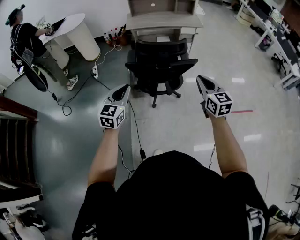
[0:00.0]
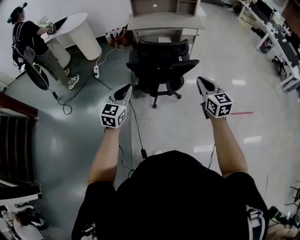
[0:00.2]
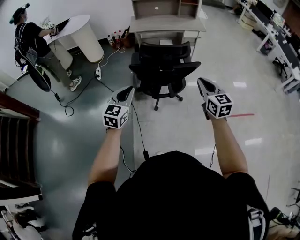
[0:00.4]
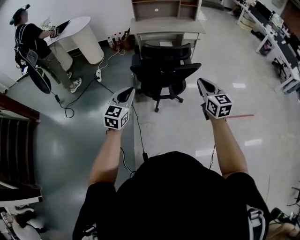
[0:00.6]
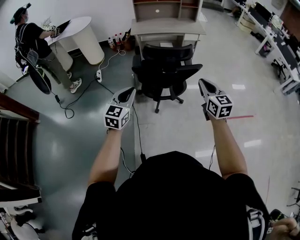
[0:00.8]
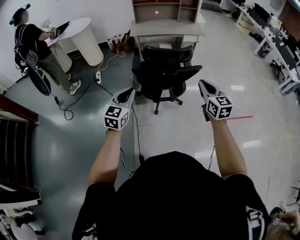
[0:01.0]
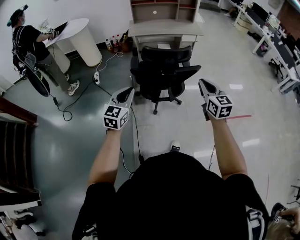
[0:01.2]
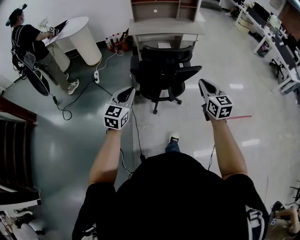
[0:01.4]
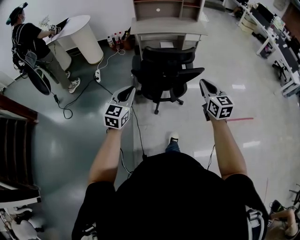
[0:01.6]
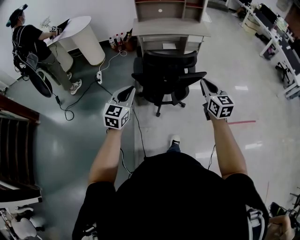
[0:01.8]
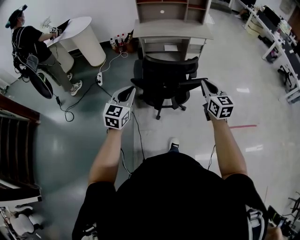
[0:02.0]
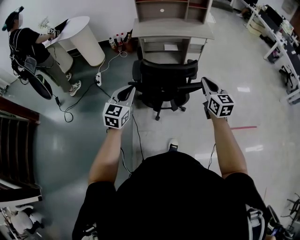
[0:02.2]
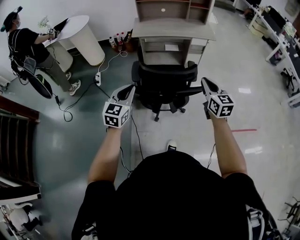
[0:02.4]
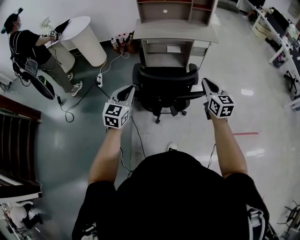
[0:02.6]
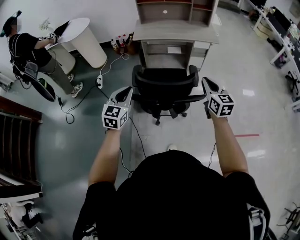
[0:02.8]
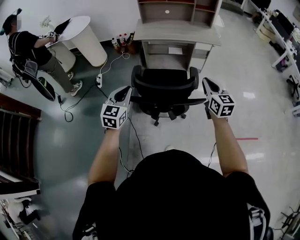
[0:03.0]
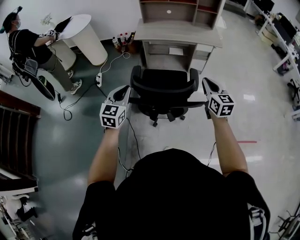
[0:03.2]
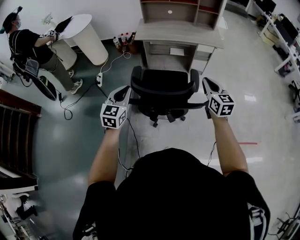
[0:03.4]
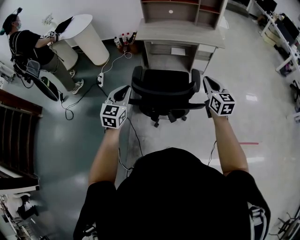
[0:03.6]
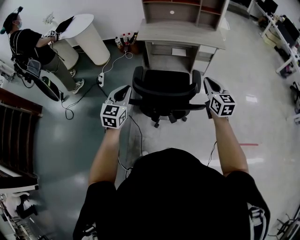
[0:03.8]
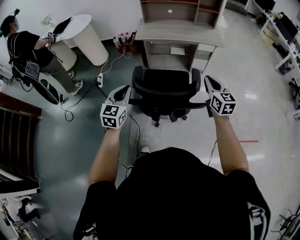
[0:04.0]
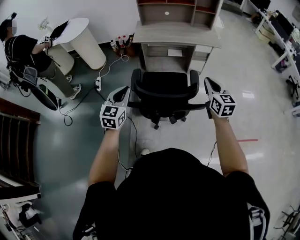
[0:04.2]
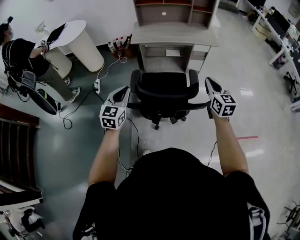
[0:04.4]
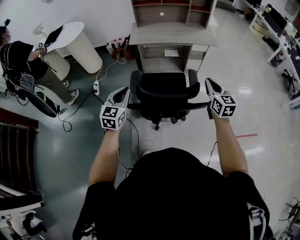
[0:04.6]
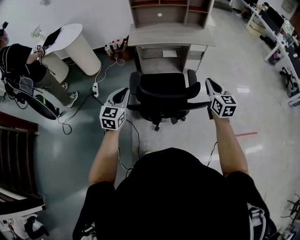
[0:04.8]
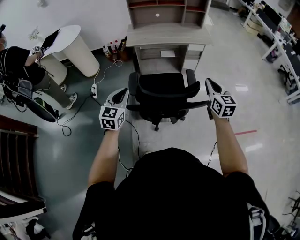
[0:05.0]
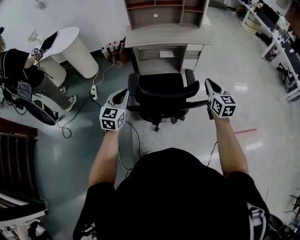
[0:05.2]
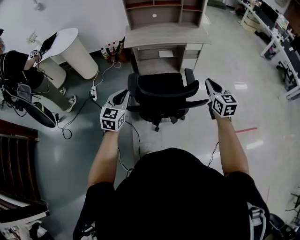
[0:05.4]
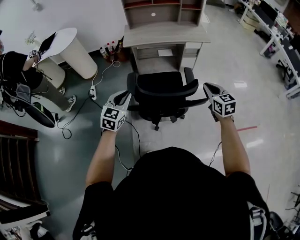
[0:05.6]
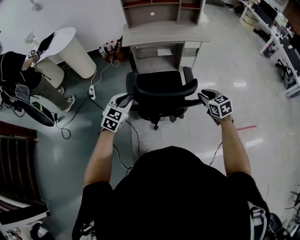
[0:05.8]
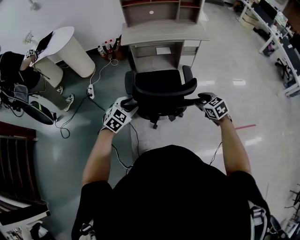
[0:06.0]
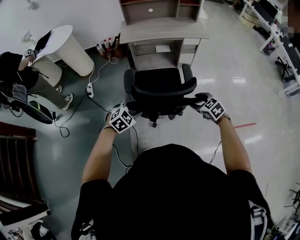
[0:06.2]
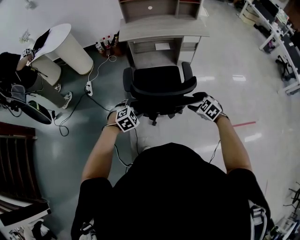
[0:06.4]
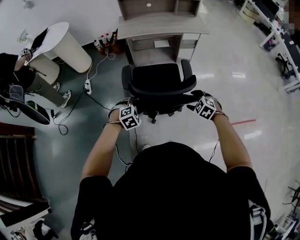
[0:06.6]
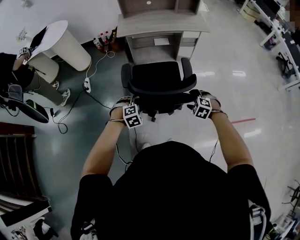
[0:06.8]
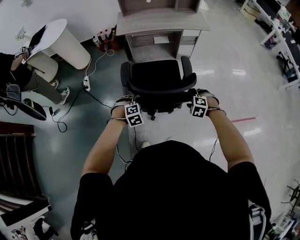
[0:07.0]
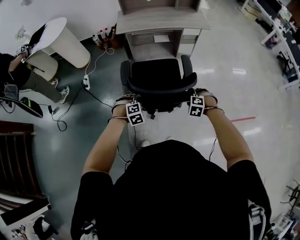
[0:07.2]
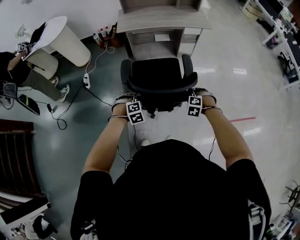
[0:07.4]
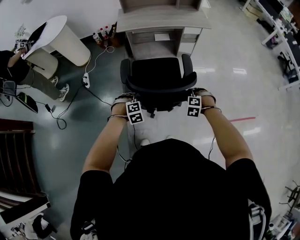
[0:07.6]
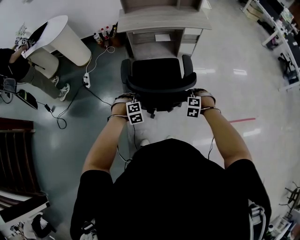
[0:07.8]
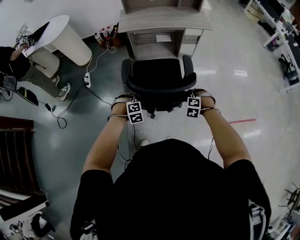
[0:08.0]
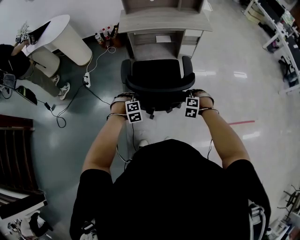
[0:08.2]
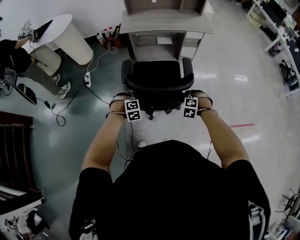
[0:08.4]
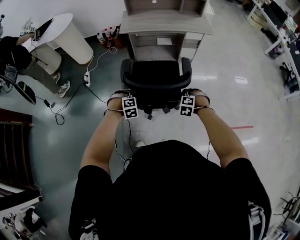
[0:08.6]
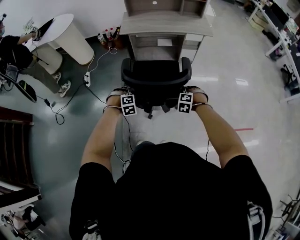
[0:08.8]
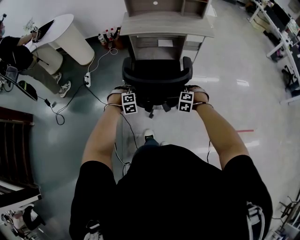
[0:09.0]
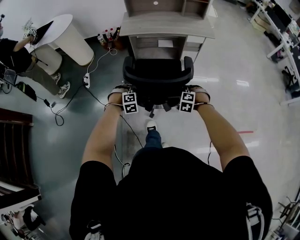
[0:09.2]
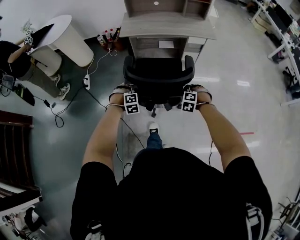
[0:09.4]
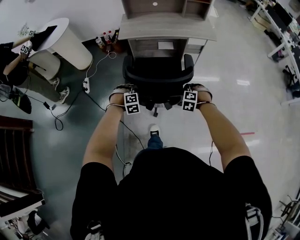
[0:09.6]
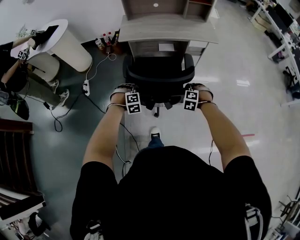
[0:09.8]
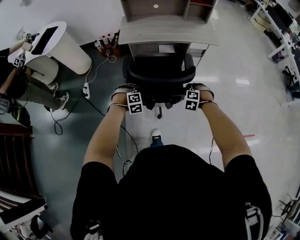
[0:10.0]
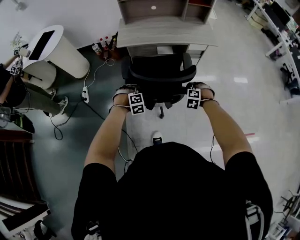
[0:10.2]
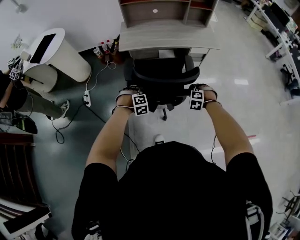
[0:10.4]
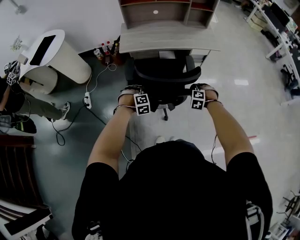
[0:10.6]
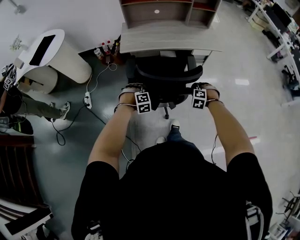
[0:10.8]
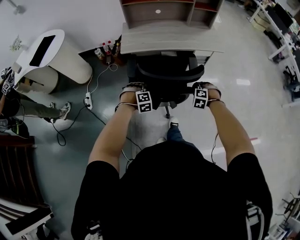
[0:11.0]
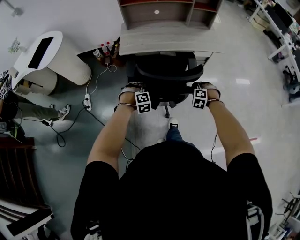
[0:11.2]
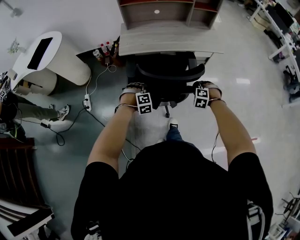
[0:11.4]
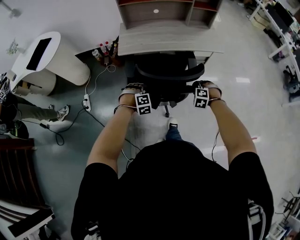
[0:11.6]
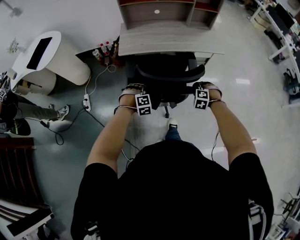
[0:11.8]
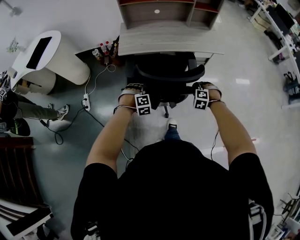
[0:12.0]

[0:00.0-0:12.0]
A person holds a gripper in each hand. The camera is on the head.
0:00.0 to 0:01.6: There are only small adjustments of the grippers.
0:01.6 to 0:03.0: Both grippers move forward, approximately 25 cm.
0:03.0 to 0:04.4: The left gripper moves forward, approximately 5 cm.
0:04.4 to 0:06.0: The right gripper heads downward and backward, covering about 15 cm, tilts its fingers approximately 30 degrees downward, and opens up. The left gripper heads downward, covering some 10 cm, rotates approximately 40 degrees, and opens its fingers.
0:06.0 to 0:07.6: Both grippers move downward, approximately 15 cm. The right gripper twists roughly 50 degrees counterclockwise, seen from behind, and opens and closes again; the left gripper swivels approximately 40 degrees, and opens and closes again.
0:07.6 to 0:09.0: The two grippers go approximately 5 cm forward.
0:09.0 to 0:10.4: The grippers both shift forward by about 20 cm.
0:10.4 to 0:12.0: The two grippers go approximately 10 cm forward.

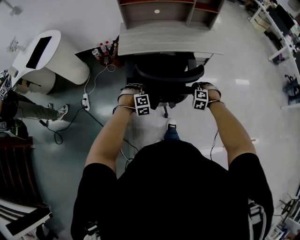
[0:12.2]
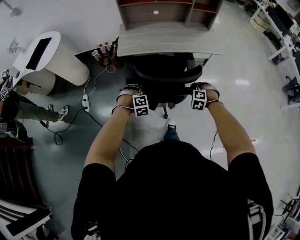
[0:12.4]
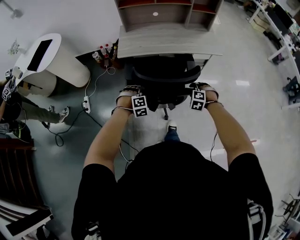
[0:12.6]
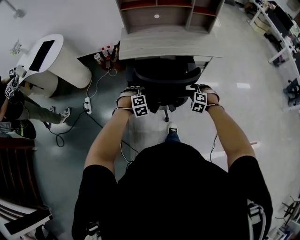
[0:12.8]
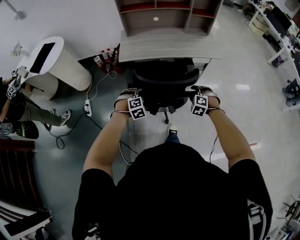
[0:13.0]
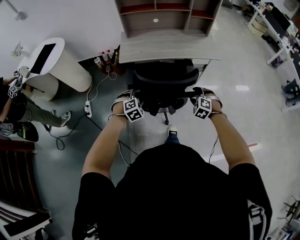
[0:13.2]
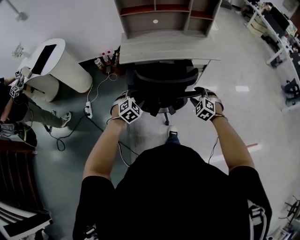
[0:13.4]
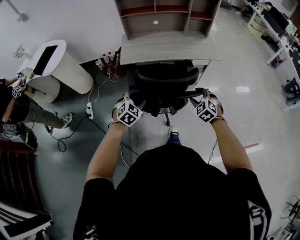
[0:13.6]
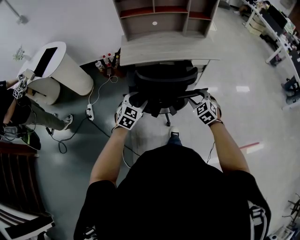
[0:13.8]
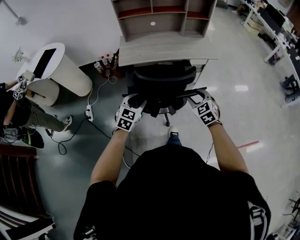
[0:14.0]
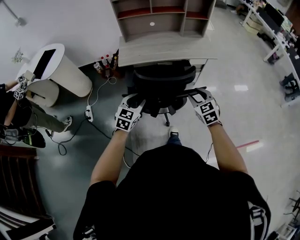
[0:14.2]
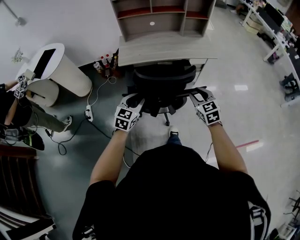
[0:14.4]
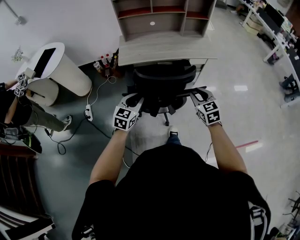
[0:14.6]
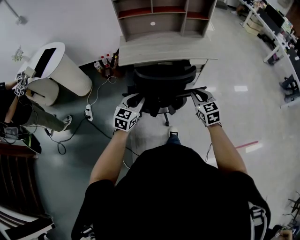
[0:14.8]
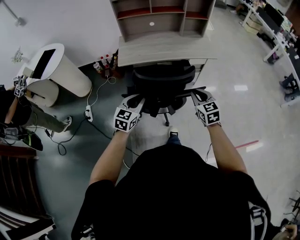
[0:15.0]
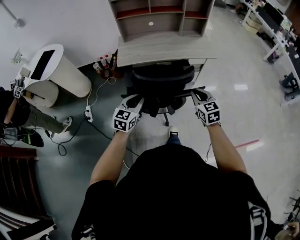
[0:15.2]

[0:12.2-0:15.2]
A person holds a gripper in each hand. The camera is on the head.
0:12.2 to 0:13.8: Both grippers travel together upward and backward, about 15 cm. The left gripper twists about 50 degrees counterclockwise, seen from behind, and opens. Meanwhile the right gripper rotates approximately 50 degrees, and opens its fingers.
0:13.8 to 0:15.2: The right gripper goes some 5 cm upward, turns by some 30 degrees, and closes its fingers; the left gripper rotates some 20 degrees, and closes up.

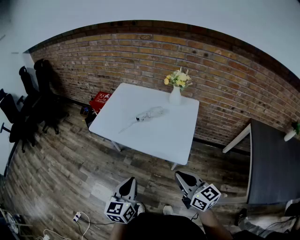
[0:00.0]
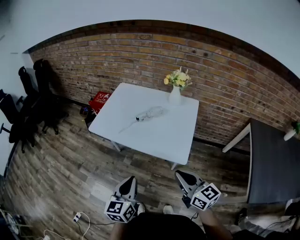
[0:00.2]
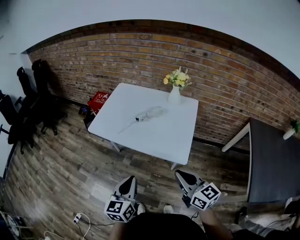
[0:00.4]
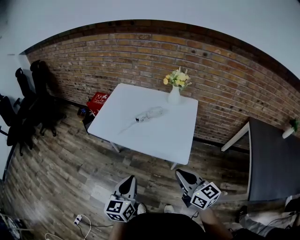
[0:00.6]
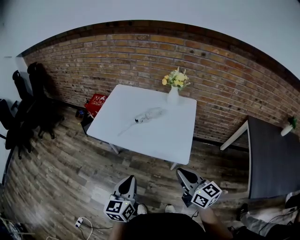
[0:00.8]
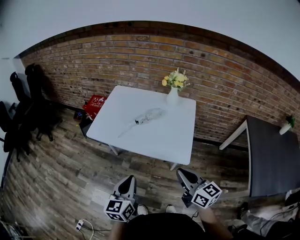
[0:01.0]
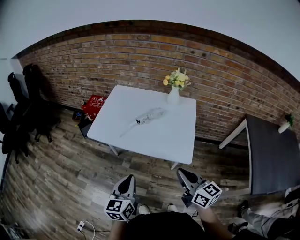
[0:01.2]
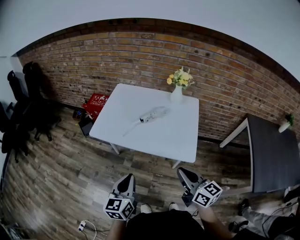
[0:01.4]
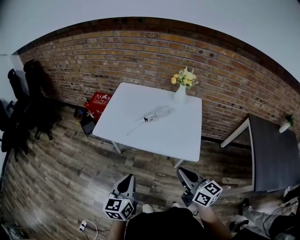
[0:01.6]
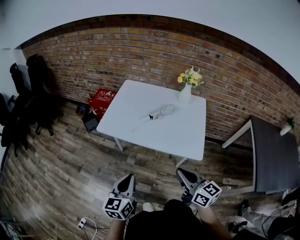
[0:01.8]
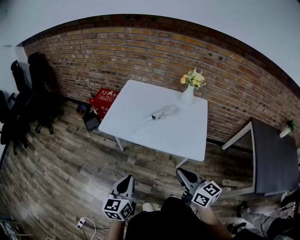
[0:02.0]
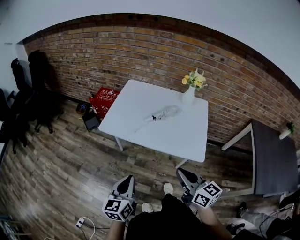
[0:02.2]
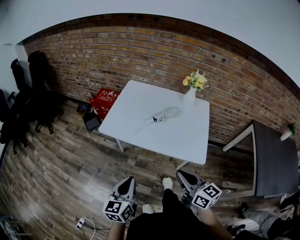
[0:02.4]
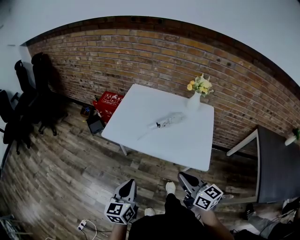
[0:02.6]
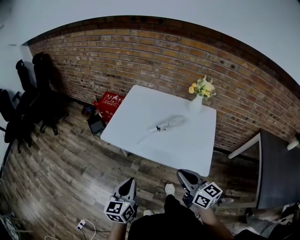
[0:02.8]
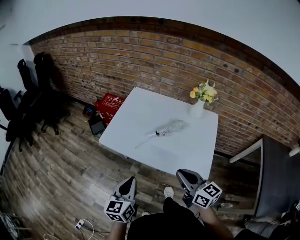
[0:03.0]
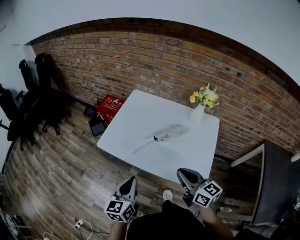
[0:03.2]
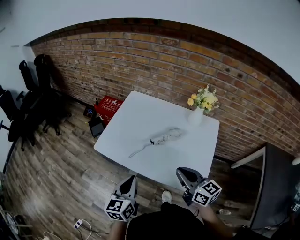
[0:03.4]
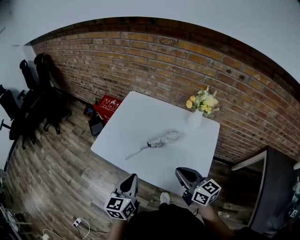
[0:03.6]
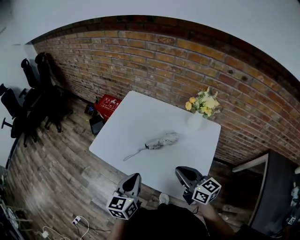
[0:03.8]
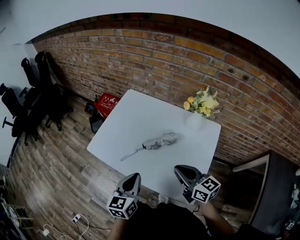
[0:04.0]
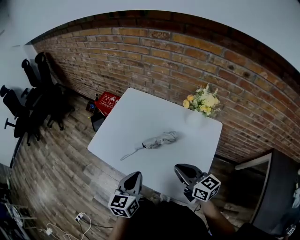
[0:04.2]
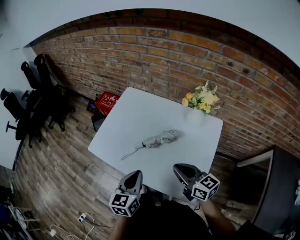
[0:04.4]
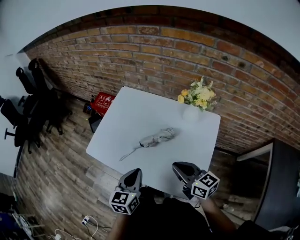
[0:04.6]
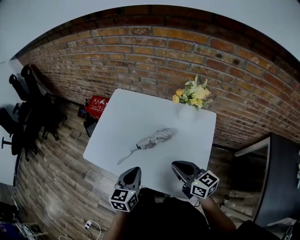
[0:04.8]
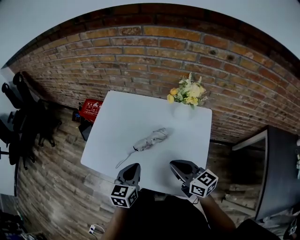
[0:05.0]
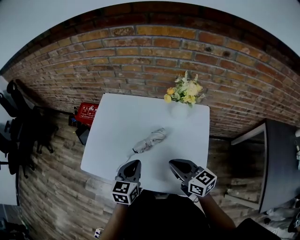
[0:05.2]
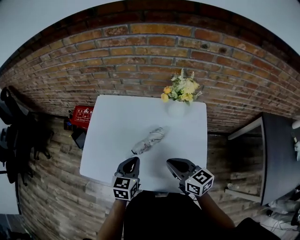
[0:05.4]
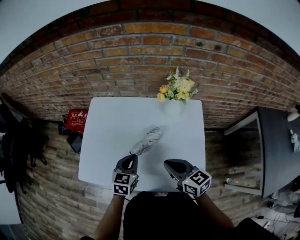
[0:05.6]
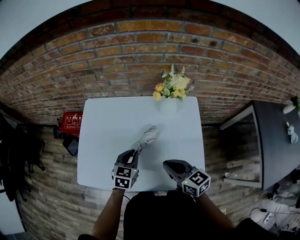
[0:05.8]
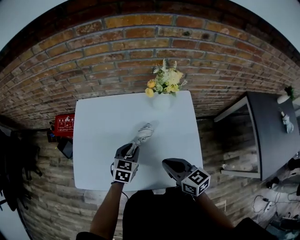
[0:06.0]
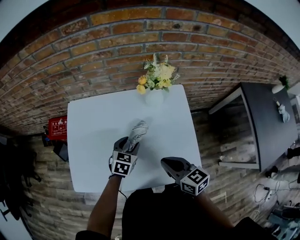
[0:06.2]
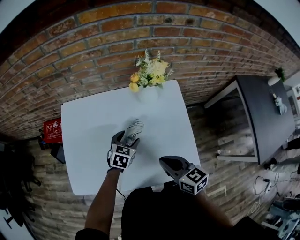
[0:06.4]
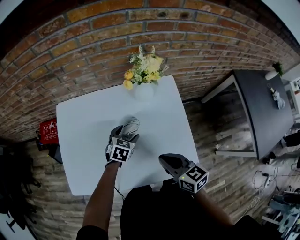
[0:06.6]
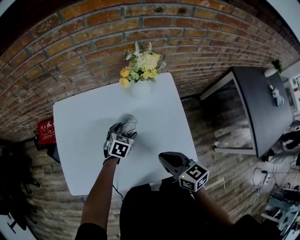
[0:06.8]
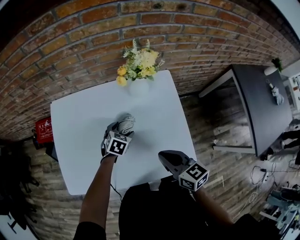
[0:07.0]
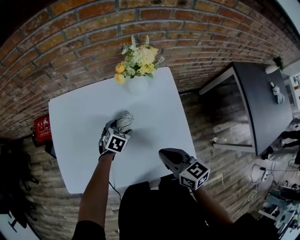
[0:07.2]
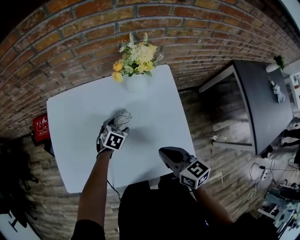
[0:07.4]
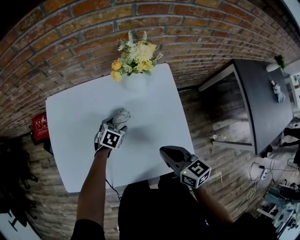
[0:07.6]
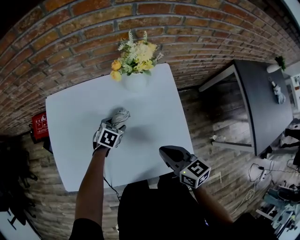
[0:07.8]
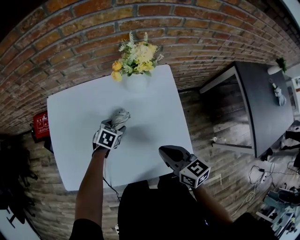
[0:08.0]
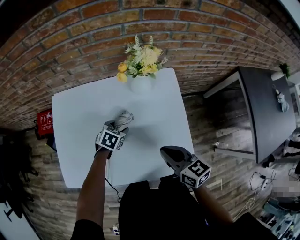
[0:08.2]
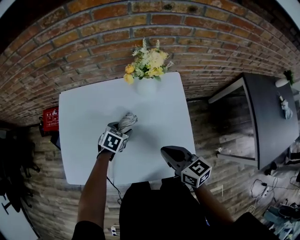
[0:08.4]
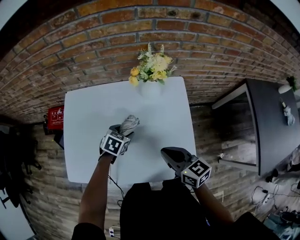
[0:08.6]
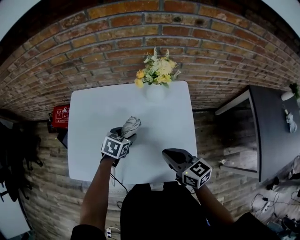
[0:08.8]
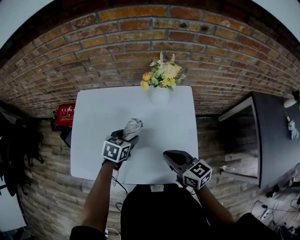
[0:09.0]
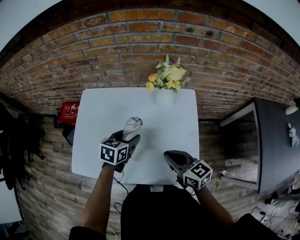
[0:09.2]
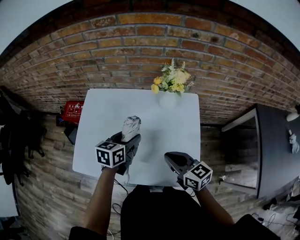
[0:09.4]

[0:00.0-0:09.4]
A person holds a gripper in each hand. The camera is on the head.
0:00.0 to 0:01.6: The right gripper travels to the left by about 10 cm, while the left gripper goes some 10 cm to the left and forward.
0:01.6 to 0:03.2: The two grippers go about 15 cm forward.
0:03.2 to 0:04.8: The right gripper heads to the right, forward and downward, covering about 15 cm. Meanwhile the left gripper heads to the right and forward, covering roughly 20 cm.
0:04.8 to 0:06.2: The right gripper changes its angle by approximately 30 degrees. The left gripper changes place by about 20 cm, swivels about 40 degrees, and opens up.
0:06.2 to 0:07.8: The right gripper shifts about 5 cm to the right. Meanwhile the left gripper is displaced downward by some 10 cm, and turns by approximately 20 degrees.
0:07.8 to 0:09.4: The left gripper travels upward by approximately 20 cm, and turns by approximately 40 degrees; the right gripper ends up about 5 cm from where it was, and swivels about 20 degrees.
